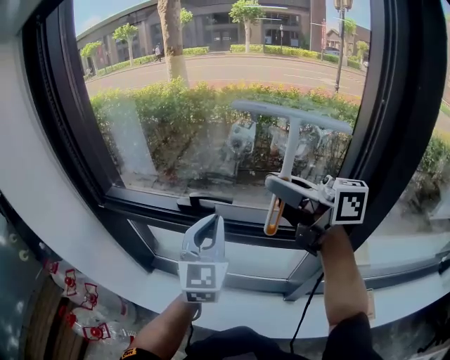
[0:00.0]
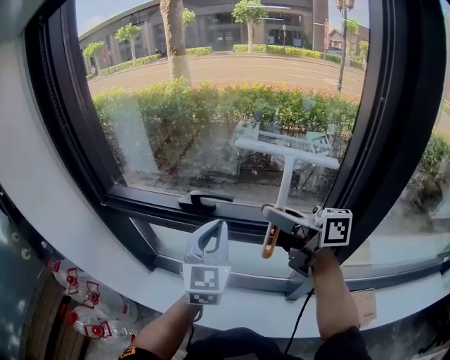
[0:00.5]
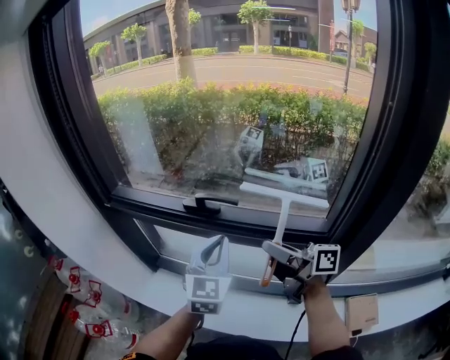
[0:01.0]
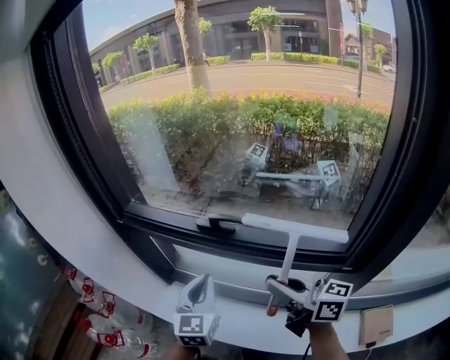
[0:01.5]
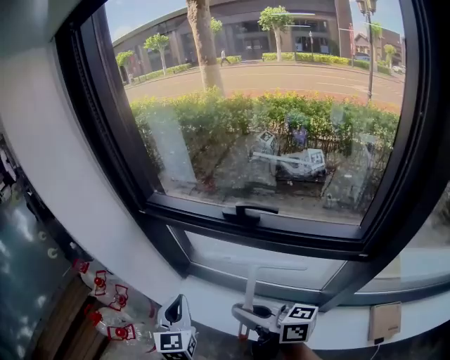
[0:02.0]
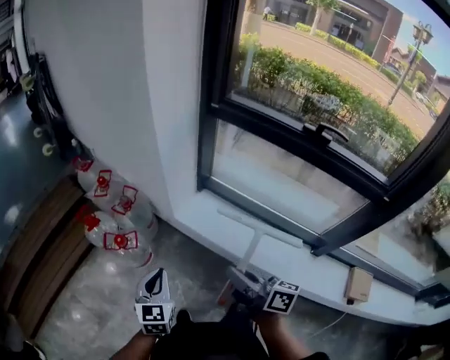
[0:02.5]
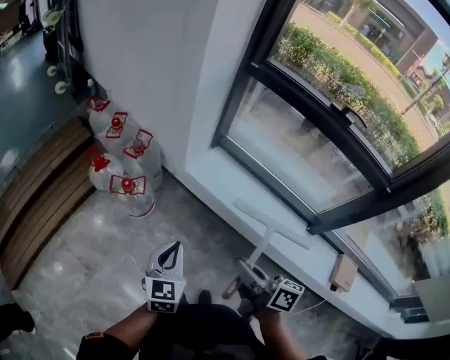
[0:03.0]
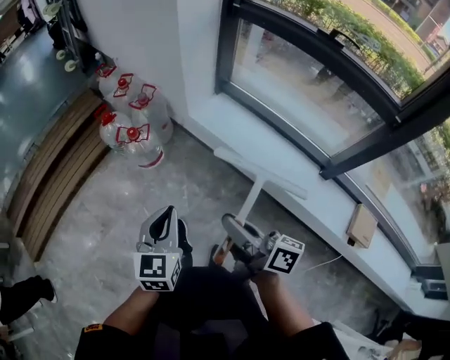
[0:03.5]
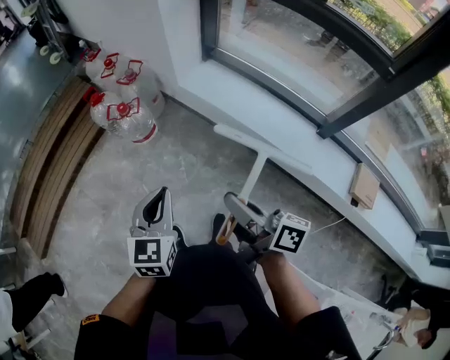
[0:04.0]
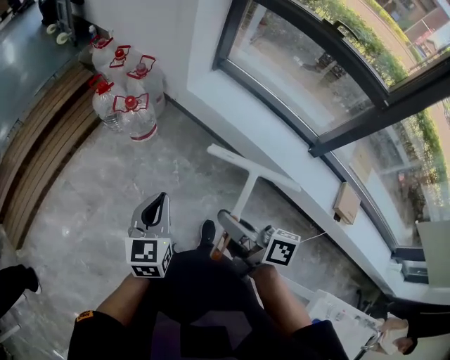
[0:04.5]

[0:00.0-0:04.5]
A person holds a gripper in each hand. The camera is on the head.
0:00.0 to 0:02.0: The left gripper heads to the left and downward, covering about 30 cm, and turns by roughly 30 degrees; the right gripper moves downward and to the left, roughly 35 cm.
0:02.0 to 0:04.5: The pair of grippers is taken to the left and backward, roughly 60 cm. The right gripper swivels some 30 degrees; the left gripper rotates approximately 20 degrees.

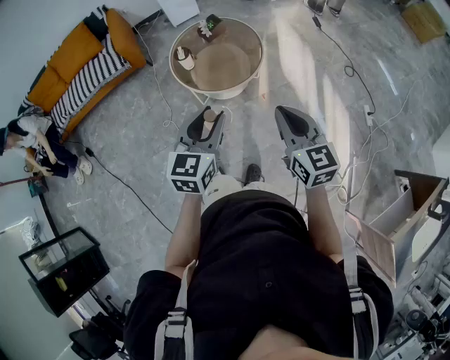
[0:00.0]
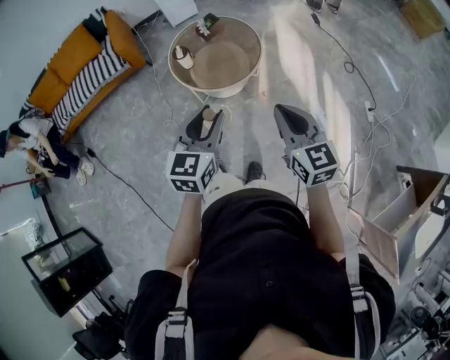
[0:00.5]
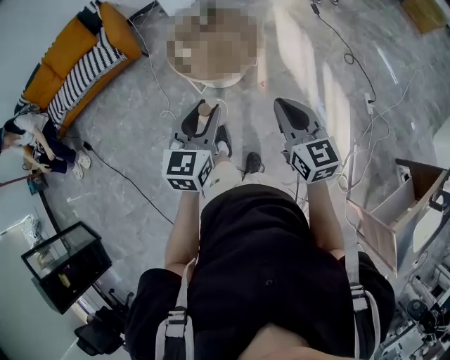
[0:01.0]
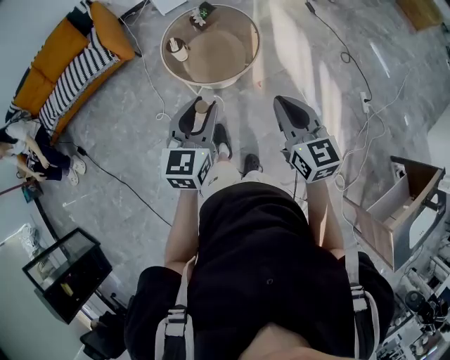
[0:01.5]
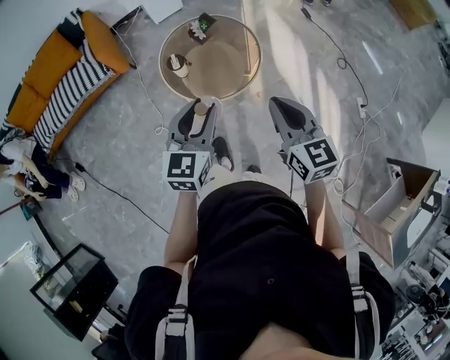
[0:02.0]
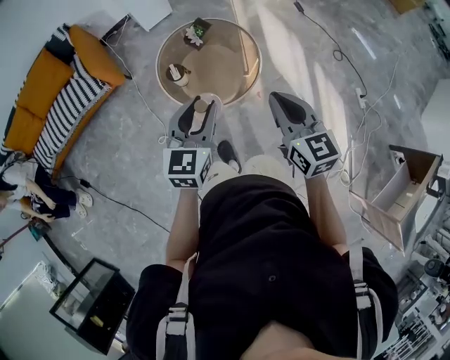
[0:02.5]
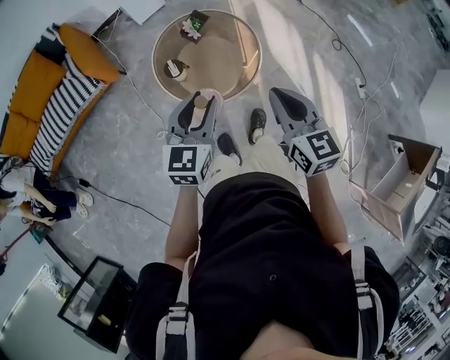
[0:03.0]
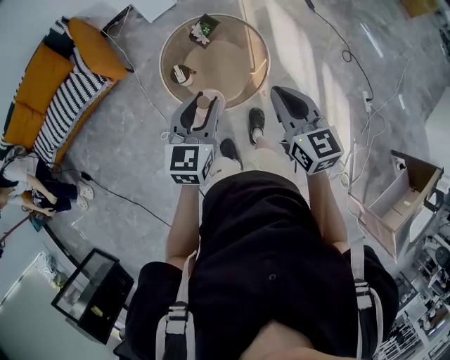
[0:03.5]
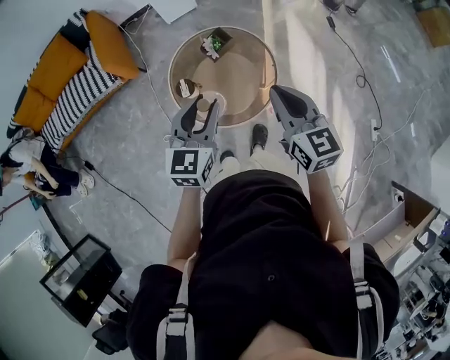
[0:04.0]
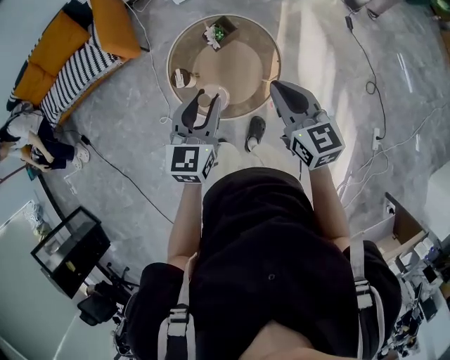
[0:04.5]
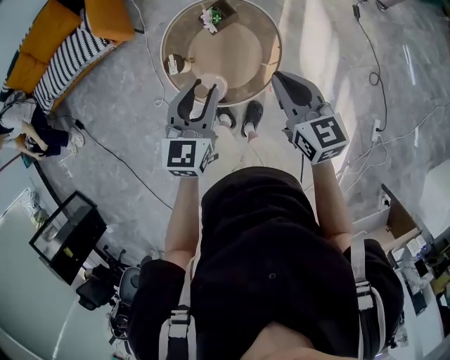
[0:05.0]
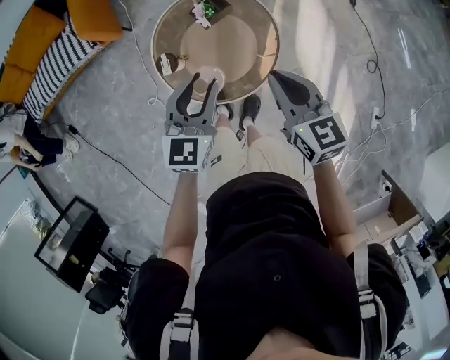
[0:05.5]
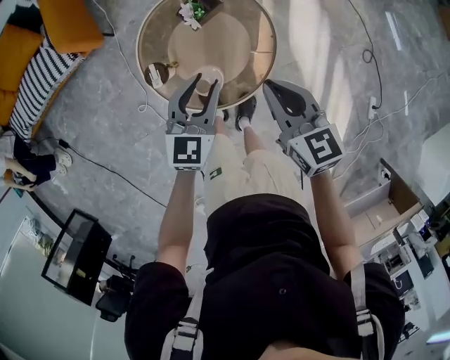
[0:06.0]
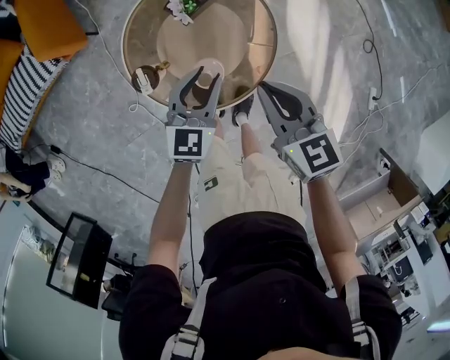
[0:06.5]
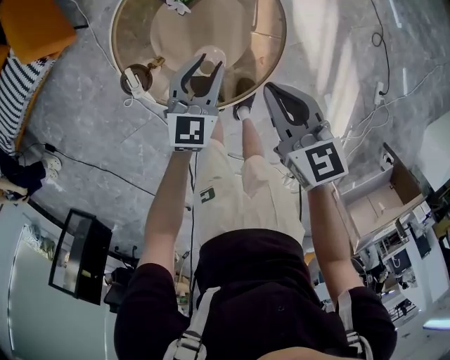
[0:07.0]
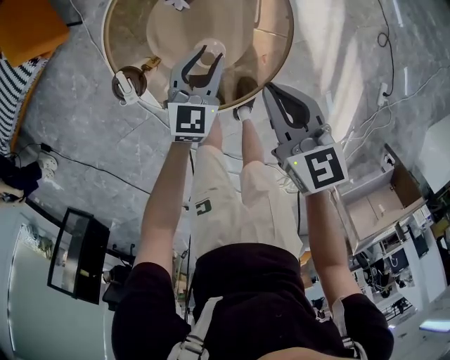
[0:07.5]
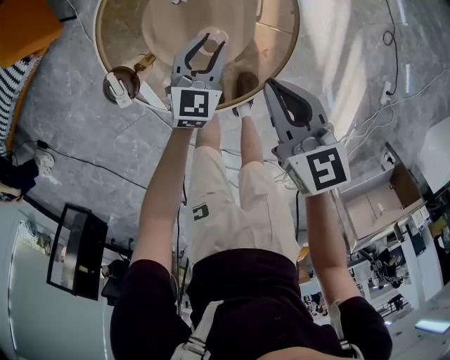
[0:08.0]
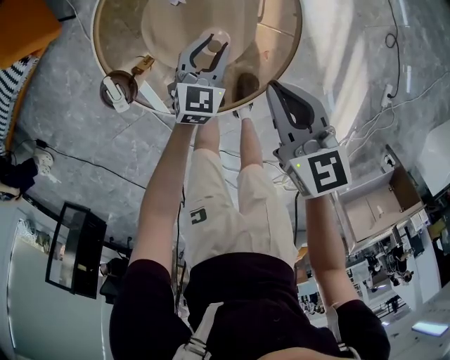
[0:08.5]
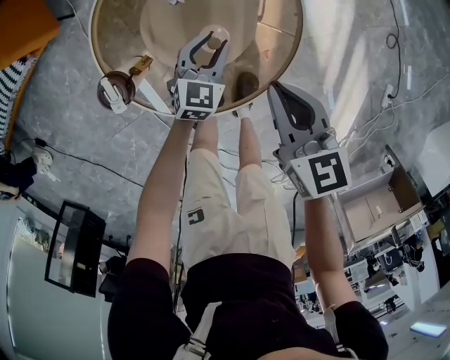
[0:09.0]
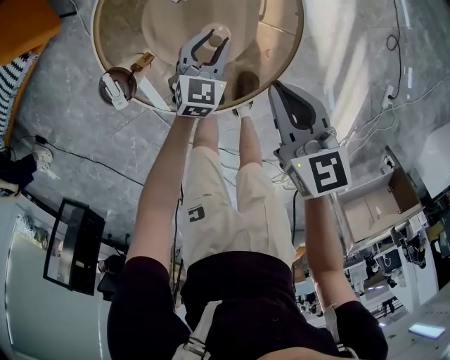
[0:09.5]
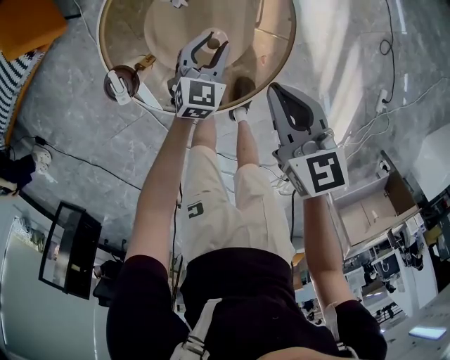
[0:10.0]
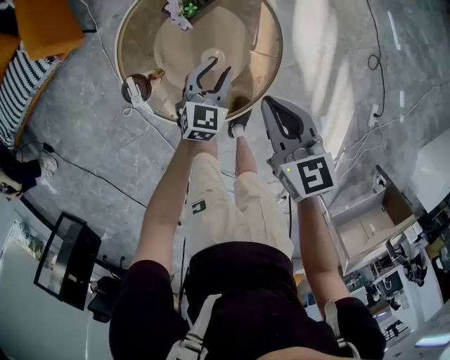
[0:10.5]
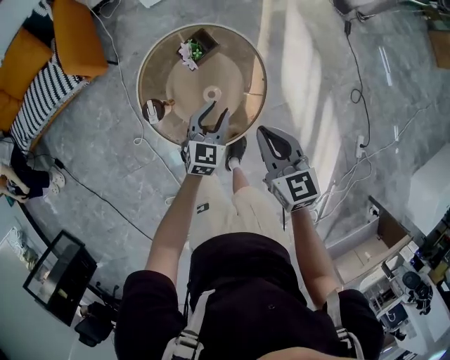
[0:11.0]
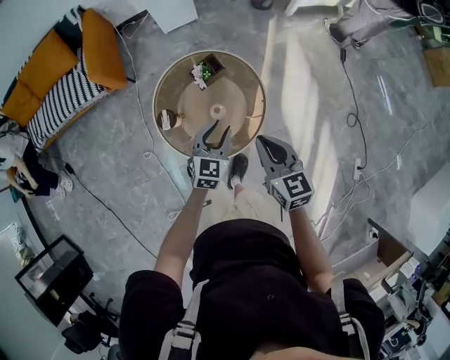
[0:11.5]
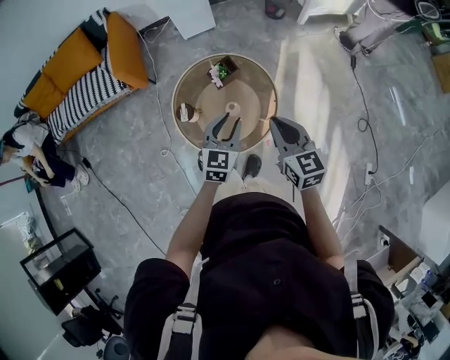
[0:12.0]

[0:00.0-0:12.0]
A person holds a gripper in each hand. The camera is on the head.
0:00.0 to 0:02.0: The two grippers go approximately 15 cm forward and to the left.
0:02.0 to 0:04.0: The grippers both shift forward by approximately 20 cm.
0:04.0 to 0:06.0: The grippers both shift downward and forward by some 20 cm.
0:06.0 to 0:08.0: The left gripper heads downward, covering roughly 30 cm; the right gripper is displaced downward by some 20 cm.
0:08.0 to 0:10.0: The grippers move only a little.
0:10.0 to 0:12.0: The two grippers go some 30 cm upward. The left gripper turns by roughly 20 degrees; the right gripper turns by about 20 degrees.

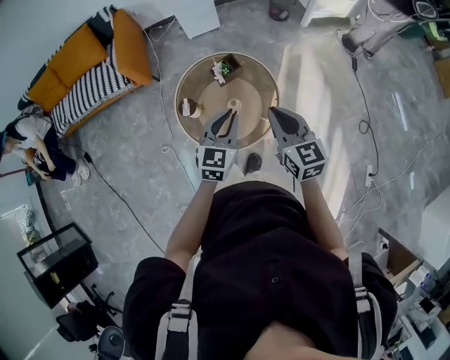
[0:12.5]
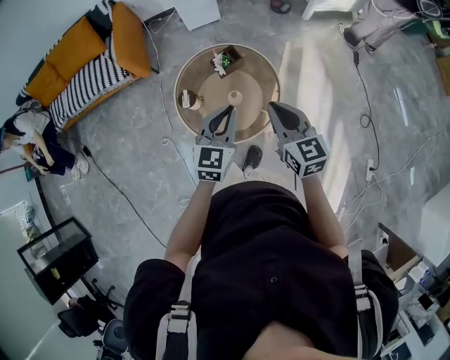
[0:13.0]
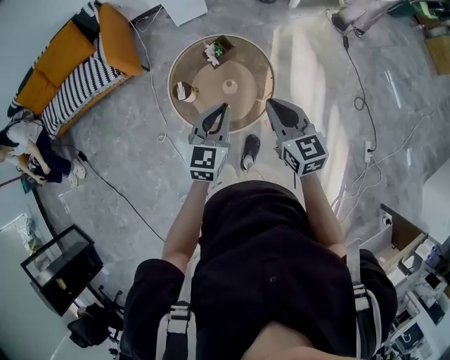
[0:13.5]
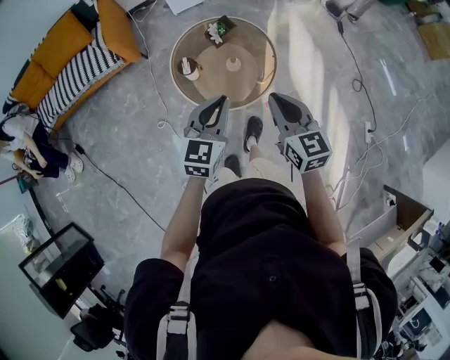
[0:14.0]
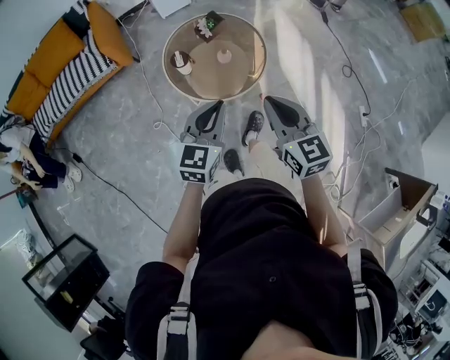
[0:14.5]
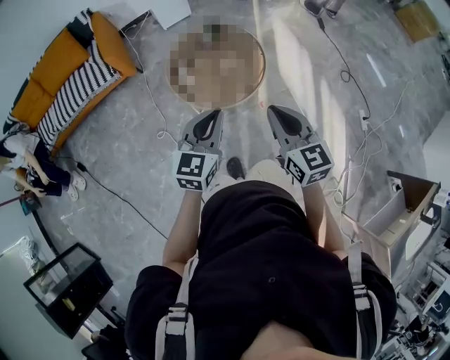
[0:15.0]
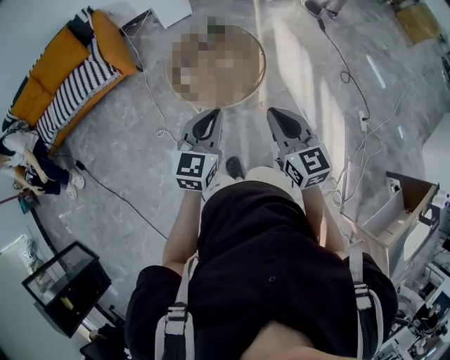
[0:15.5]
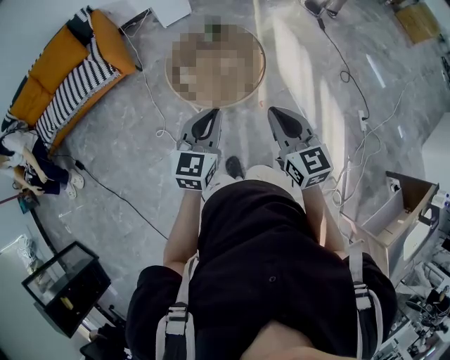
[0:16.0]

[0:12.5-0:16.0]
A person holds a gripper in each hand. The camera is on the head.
0:12.5 to 0:14.5: The right gripper moves backward, roughly 25 cm, while the left gripper travels backward and to the left by roughly 25 cm.
0:14.5 to 0:16.0: There are only small adjustments of the grippers.

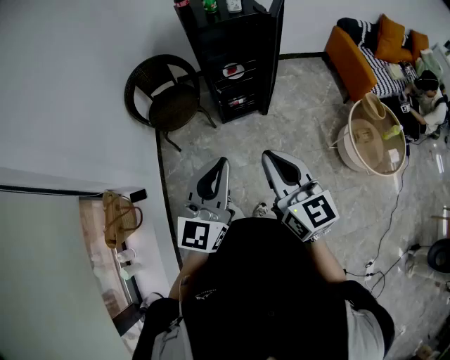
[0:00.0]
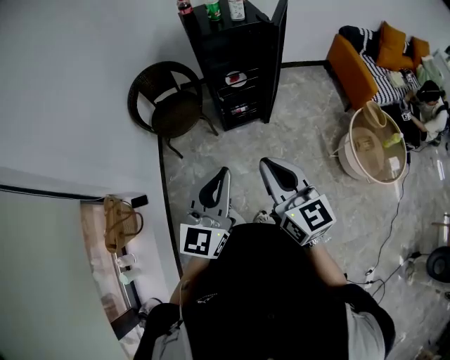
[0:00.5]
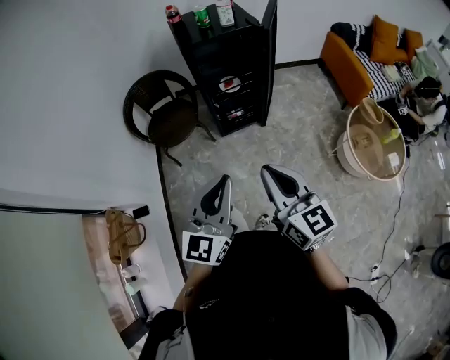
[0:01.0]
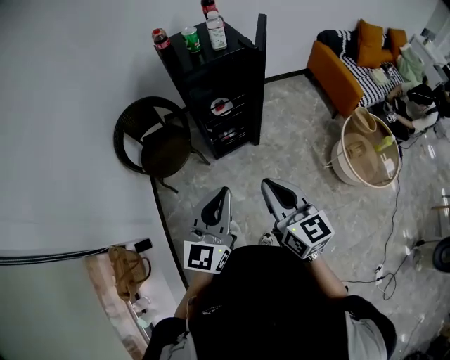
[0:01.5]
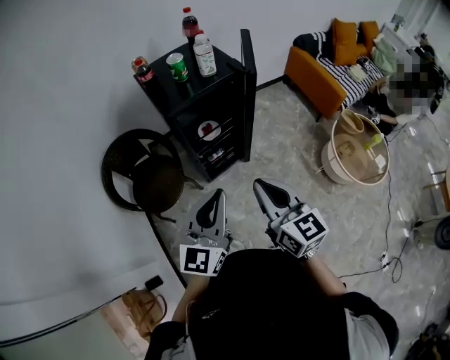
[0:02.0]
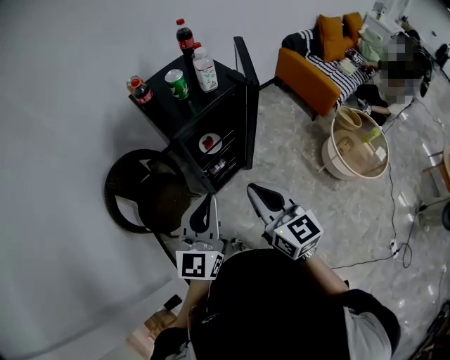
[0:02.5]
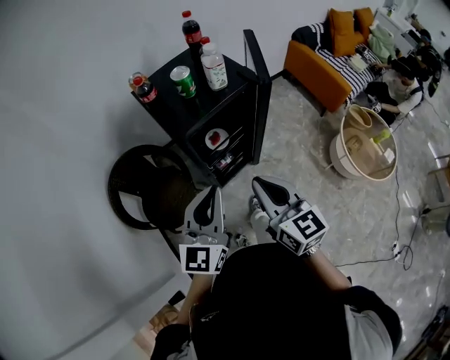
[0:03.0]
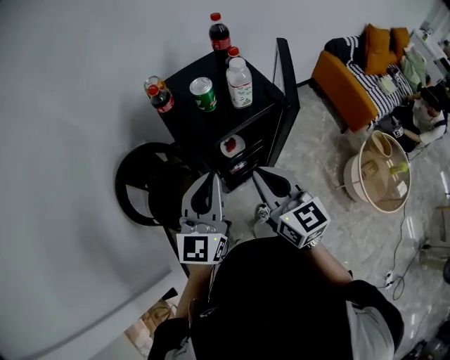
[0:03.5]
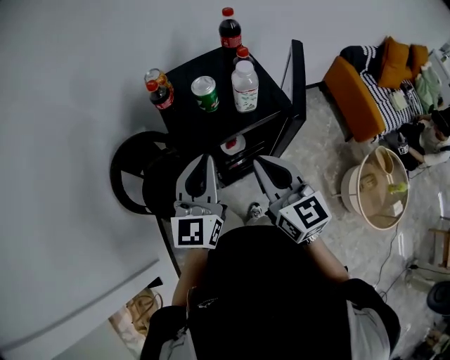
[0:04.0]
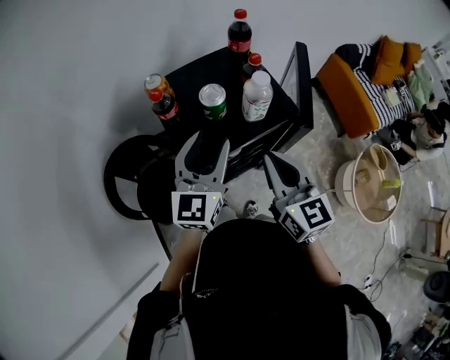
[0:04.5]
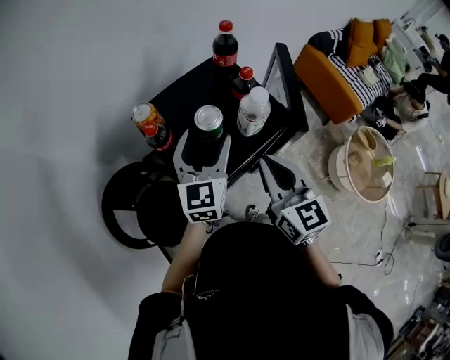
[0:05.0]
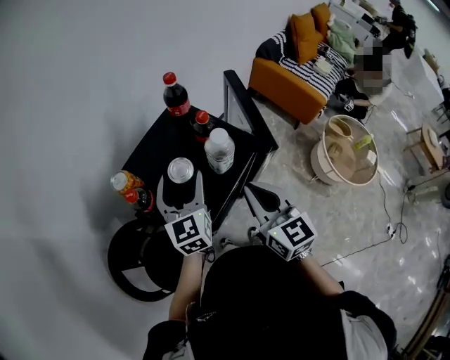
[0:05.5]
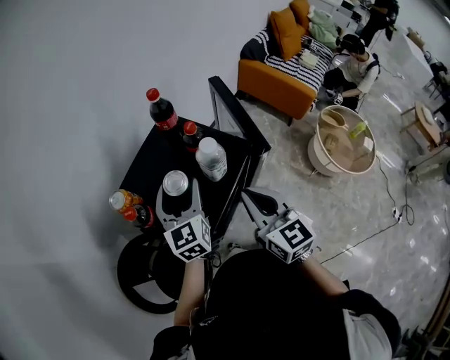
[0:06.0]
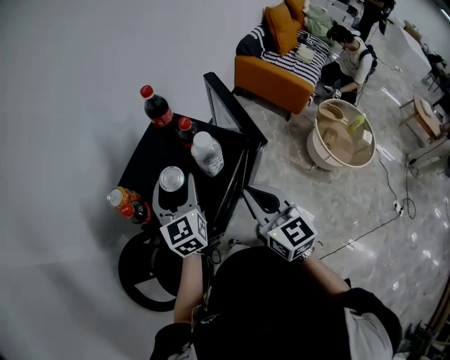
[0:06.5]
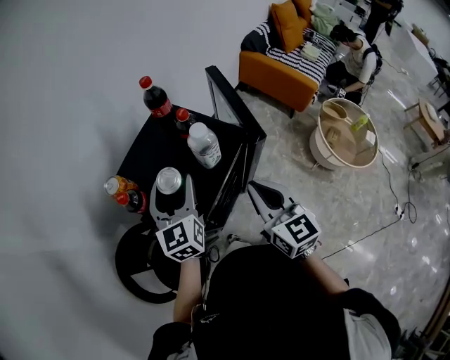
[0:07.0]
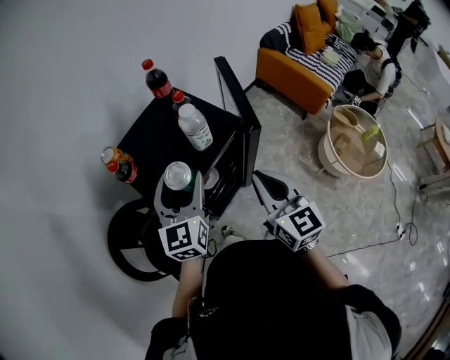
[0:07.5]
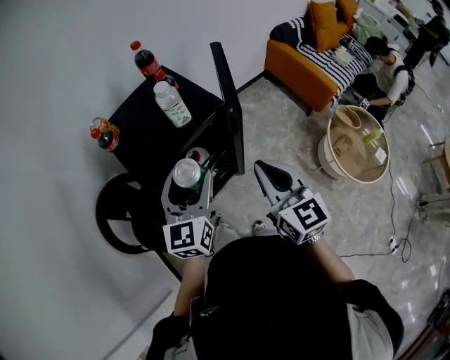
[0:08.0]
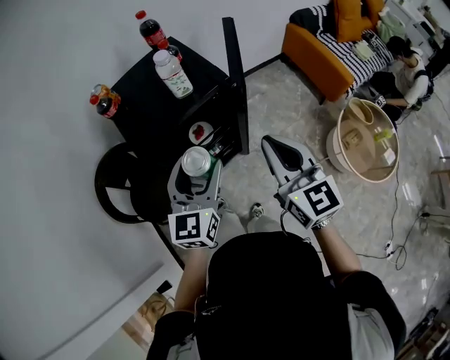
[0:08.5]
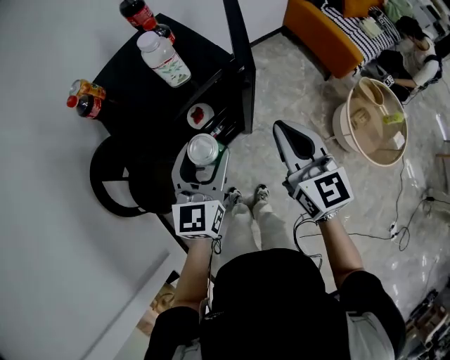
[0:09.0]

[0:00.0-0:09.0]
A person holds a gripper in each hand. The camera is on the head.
0:00.0 to 0:02.0: The grippers both shift forward by some 25 cm.
0:02.0 to 0:04.5: The two grippers go some 40 cm forward. The left gripper opens its fingers.
0:04.5 to 0:07.0: The left gripper moves forward, roughly 10 cm, and opens. Meanwhile the right gripper swivels about 30 degrees.
0:07.0 to 0:09.0: The right gripper is displaced to the right by about 15 cm, while the left gripper is displaced backward and to the right by roughly 25 cm.
